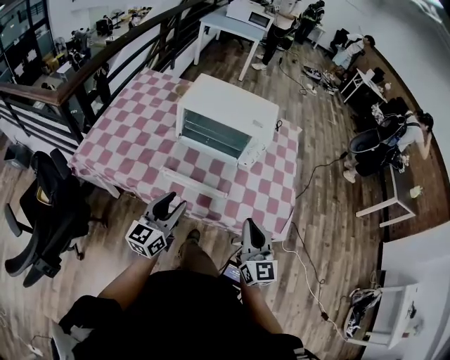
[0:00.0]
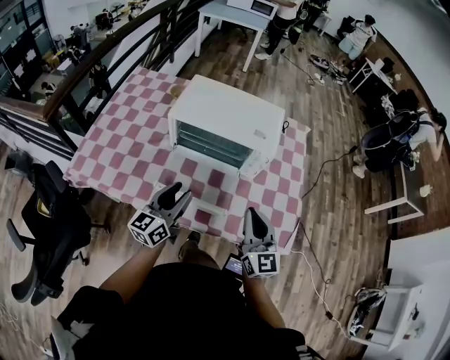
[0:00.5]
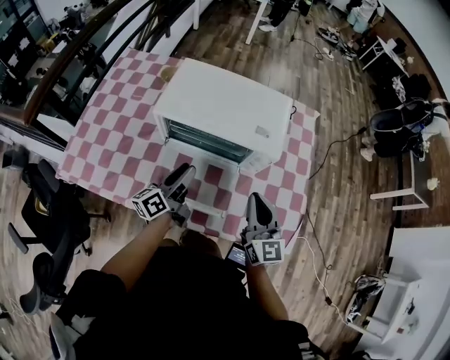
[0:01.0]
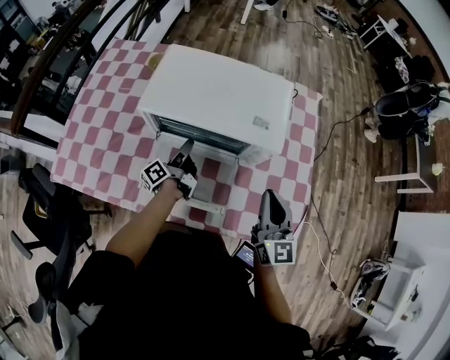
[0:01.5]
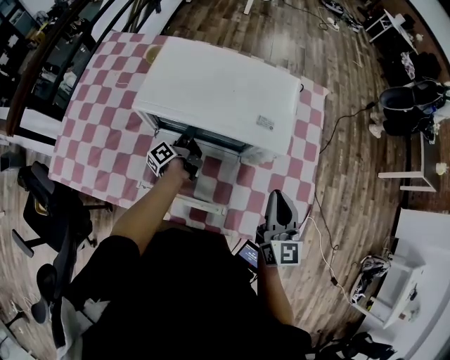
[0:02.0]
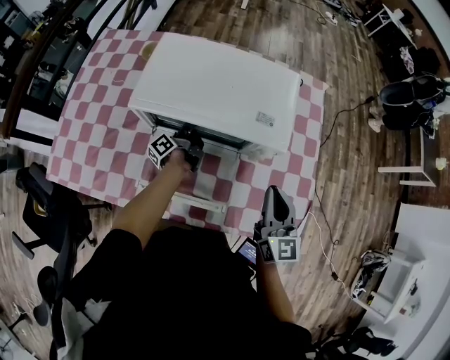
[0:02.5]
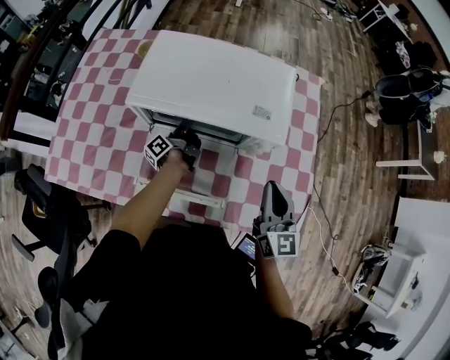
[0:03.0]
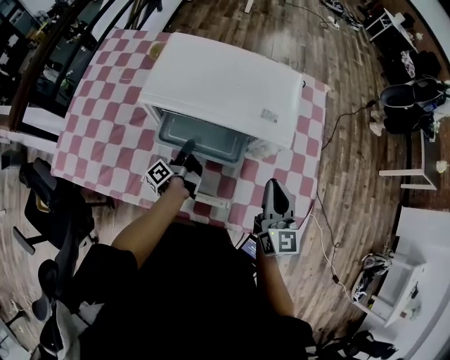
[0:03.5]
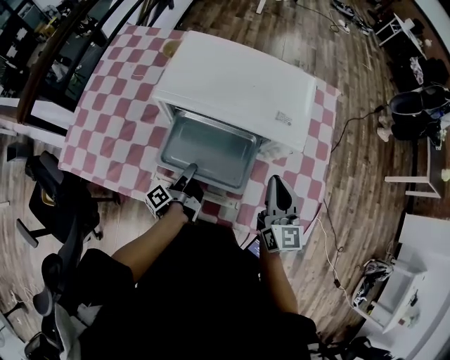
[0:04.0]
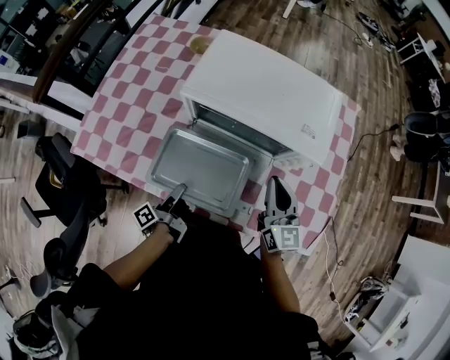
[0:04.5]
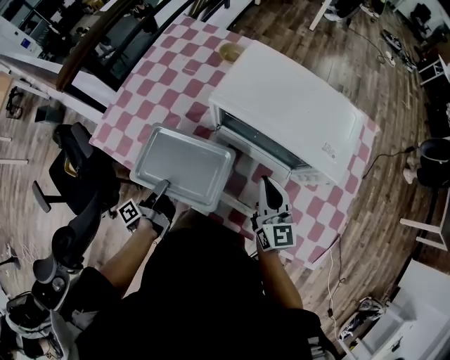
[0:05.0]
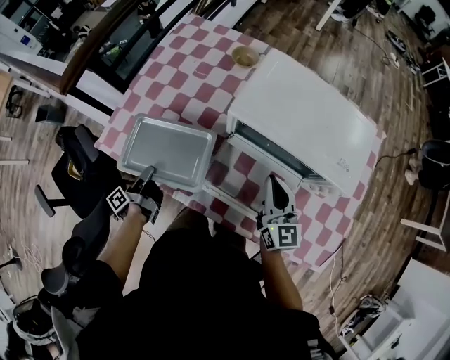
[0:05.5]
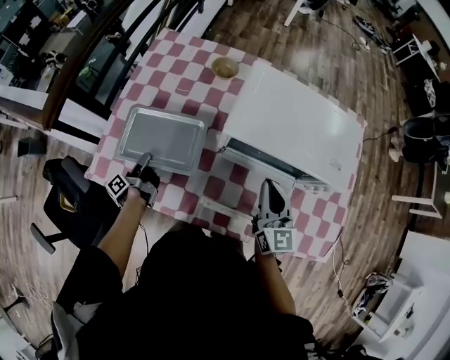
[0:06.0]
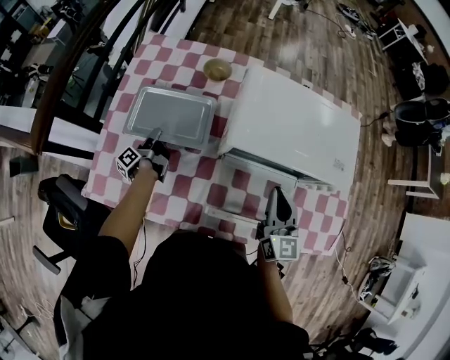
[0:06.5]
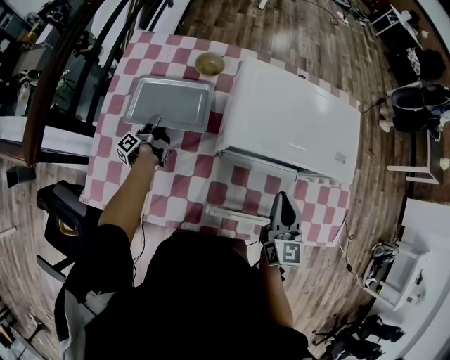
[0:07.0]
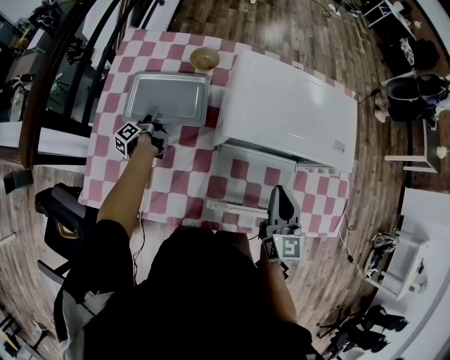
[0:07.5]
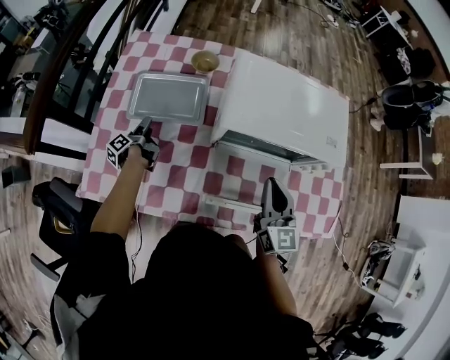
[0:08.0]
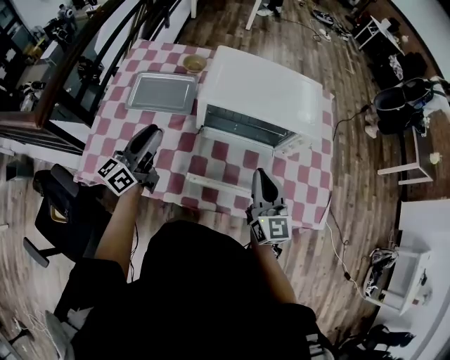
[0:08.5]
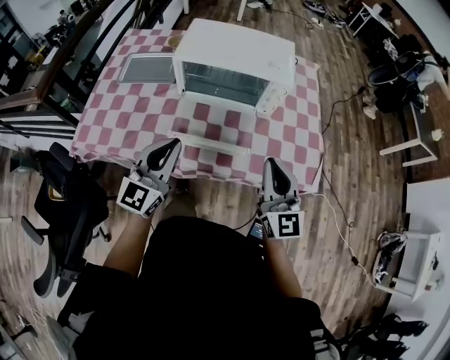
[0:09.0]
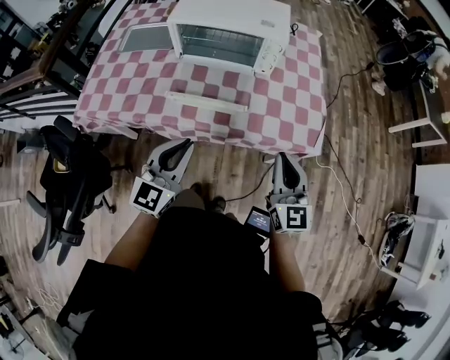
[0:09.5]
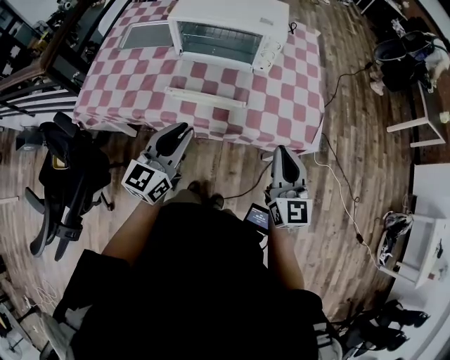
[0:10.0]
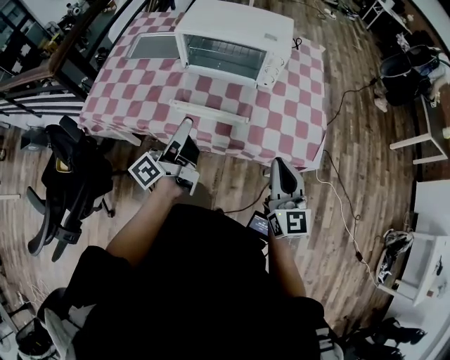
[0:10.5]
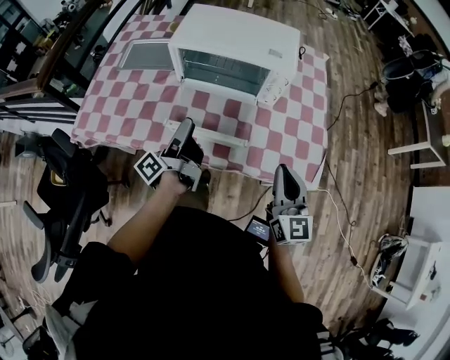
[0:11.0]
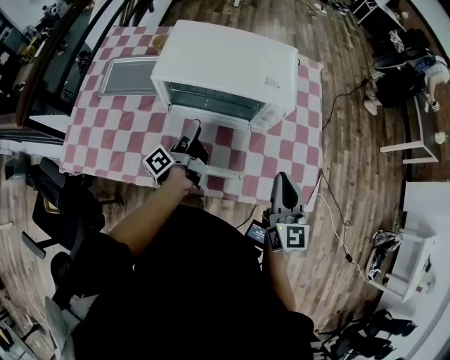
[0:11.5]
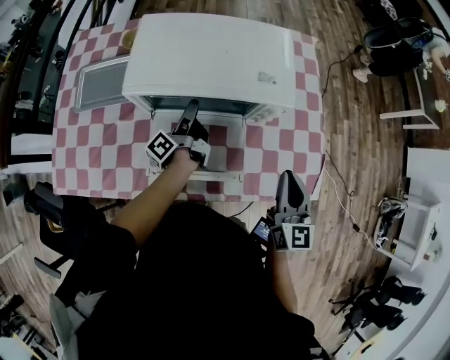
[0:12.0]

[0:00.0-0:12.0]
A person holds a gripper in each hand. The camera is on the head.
0:00.0 to 0:02.0: The right gripper travels forward by approximately 25 cm. The left gripper shifts roughly 50 cm forward and downward, and rotates around the line of its fingers by some 70 degrees, counterclockwise from behind.
0:02.0 to 0:04.0: The left gripper shifts some 15 cm backward, while the right gripper shifts by roughly 5 cm.
0:04.0 to 0:06.0: The left gripper is displaced to the left by about 35 cm; the right gripper heads to the left and forward, covering approximately 20 cm.
0:06.0 to 0:08.0: The left gripper heads forward, covering approximately 15 cm, and opens up.
0:08.0 to 0:10.0: The pair of grippers is taken backward and to the right, approximately 50 cm. The left gripper shifts about 25 cm upward, rotates around the line of its fingers by about 80 degrees, clockwise from behind, and closes up.
0:10.0 to 0:12.0: The right gripper moves forward, about 25 cm. The left gripper heads forward, covering approximately 40 cm, rotates around the line of its fingers by about 80 degrees, counterclockwise from behind, and opens up.

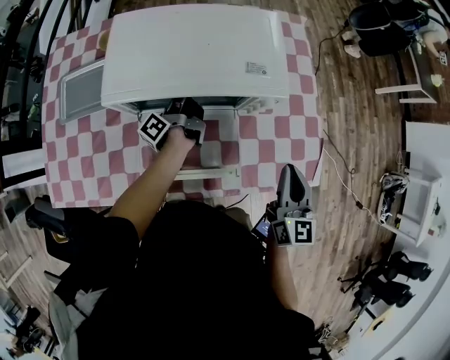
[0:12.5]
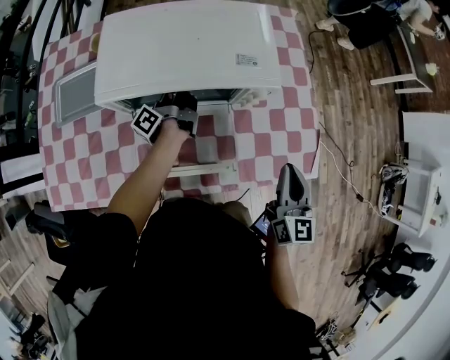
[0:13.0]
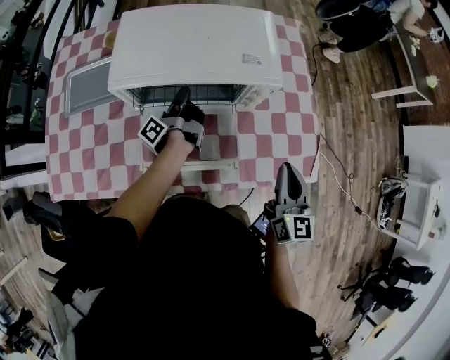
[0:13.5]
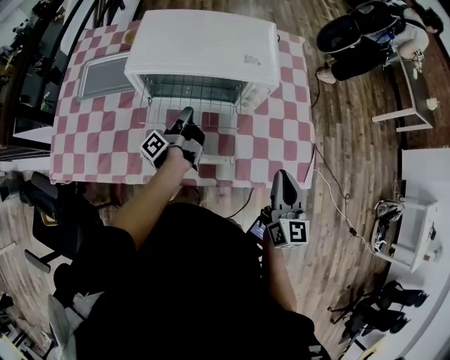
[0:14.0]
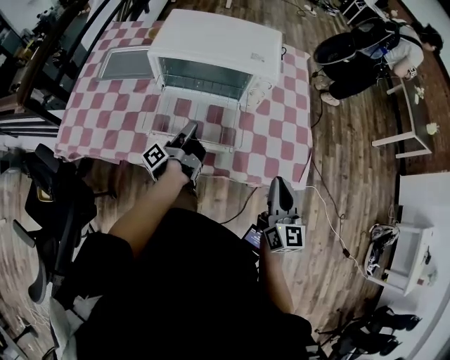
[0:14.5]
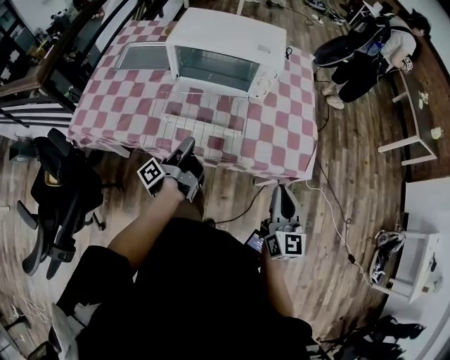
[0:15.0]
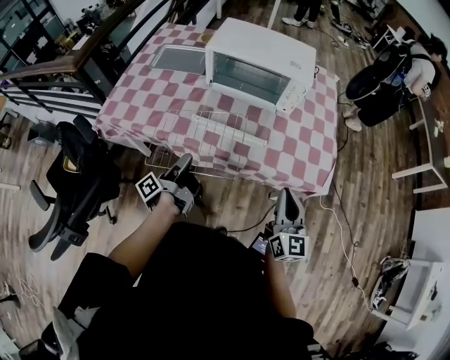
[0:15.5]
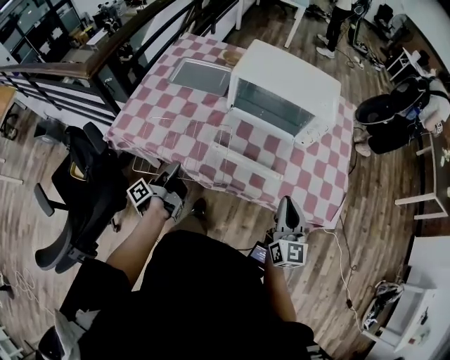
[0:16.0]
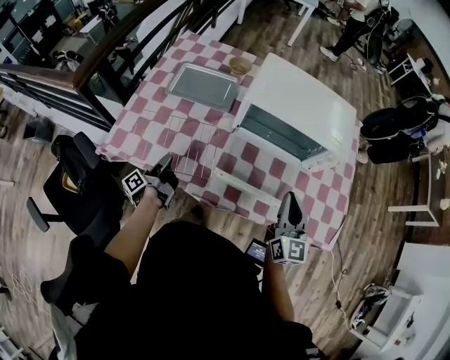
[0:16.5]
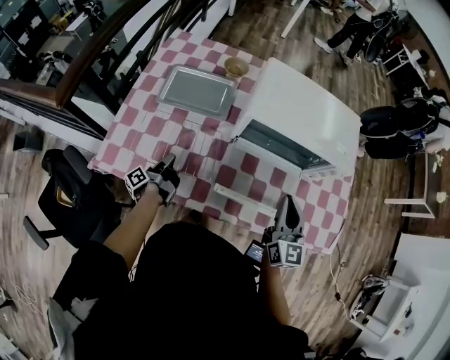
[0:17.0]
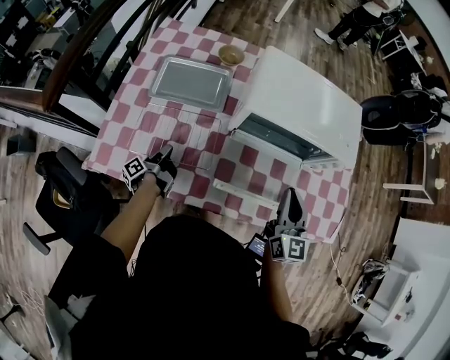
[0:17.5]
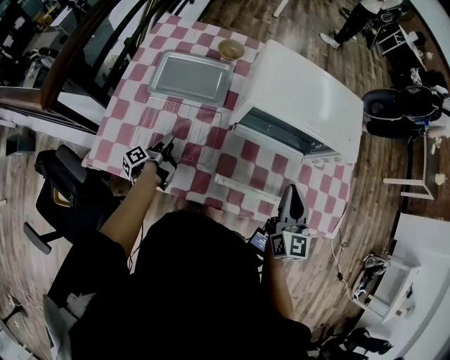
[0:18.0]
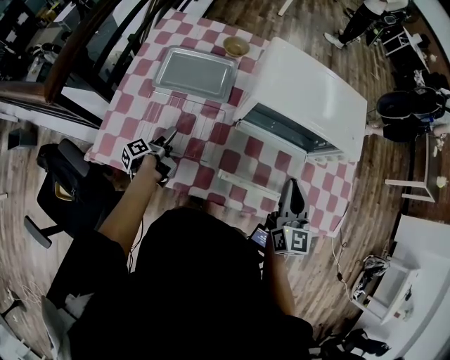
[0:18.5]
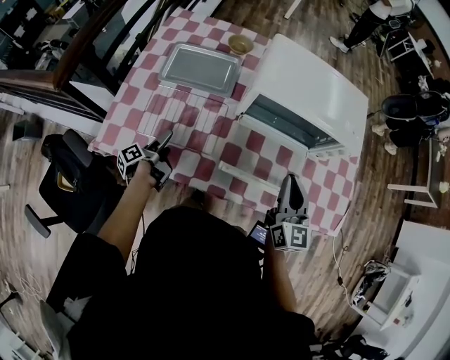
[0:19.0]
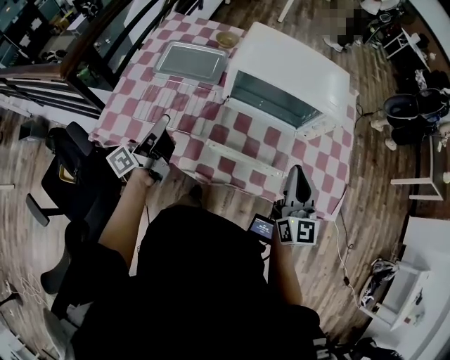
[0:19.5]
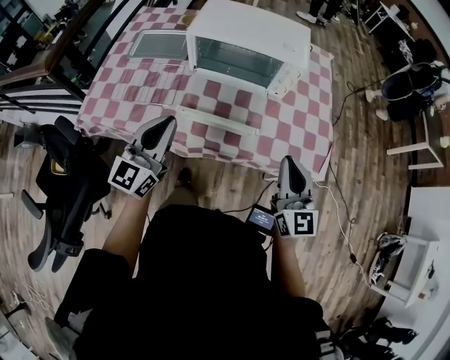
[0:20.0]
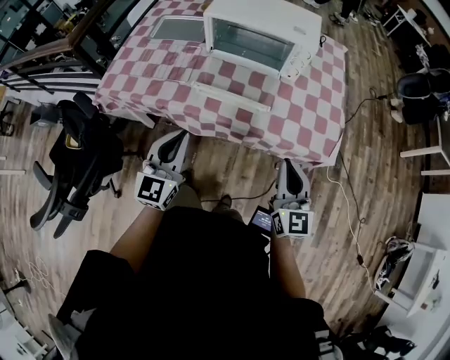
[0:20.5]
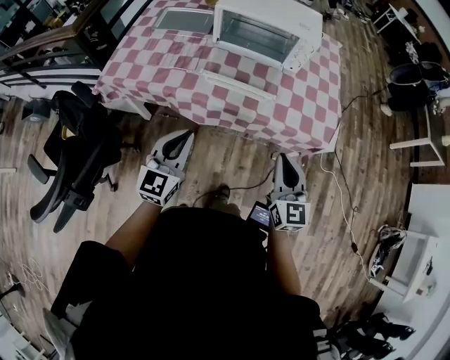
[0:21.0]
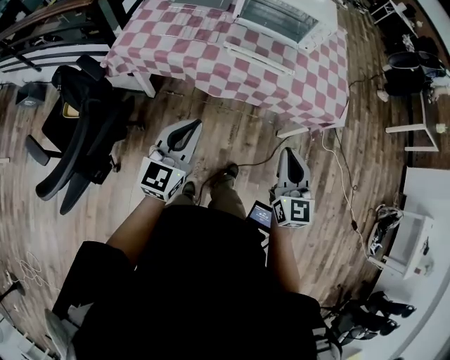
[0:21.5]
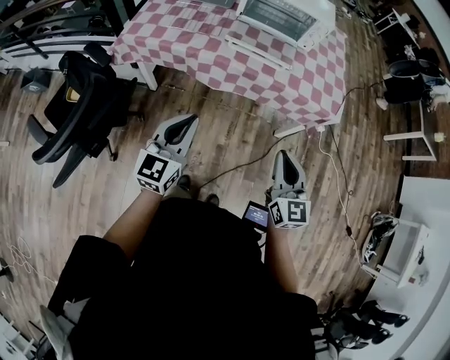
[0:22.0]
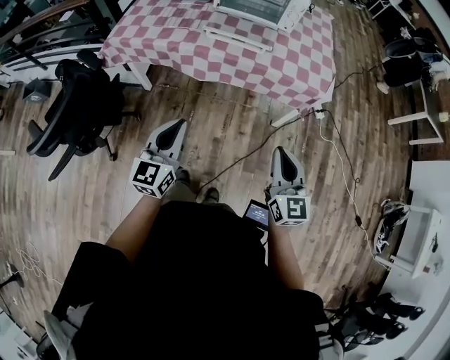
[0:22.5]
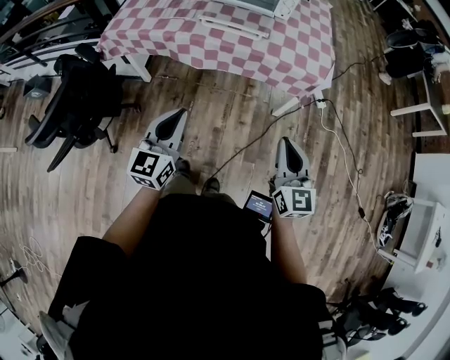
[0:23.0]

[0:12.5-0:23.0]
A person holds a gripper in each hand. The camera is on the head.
0:12.5 to 0:14.5: The left gripper shifts some 25 cm backward, and closes its fingers, while the right gripper travels backward by approximately 15 cm.
0:14.5 to 0:16.5: The right gripper heads to the left and forward, covering approximately 25 cm, while the left gripper heads to the left, covering roughly 35 cm.
0:16.5 to 0:19.0: The left gripper heads downward, covering about 5 cm, rotates approximately 20 degrees, and opens its fingers. The right gripper travels to the left by approximately 5 cm.
0:19.0 to 0:21.0: The right gripper travels backward and to the right by approximately 35 cm. The left gripper heads backward, to the right and upward, covering approximately 50 cm, rolls clockwise, seen from behind, by roughly 100 degrees, and closes its fingers.
0:21.0 to 0:23.0: Both grippers move backward, some 25 cm.

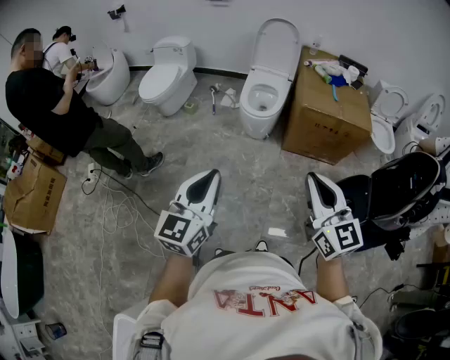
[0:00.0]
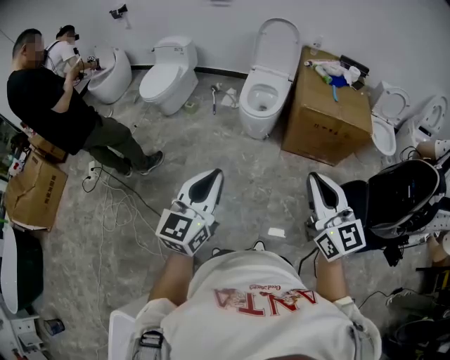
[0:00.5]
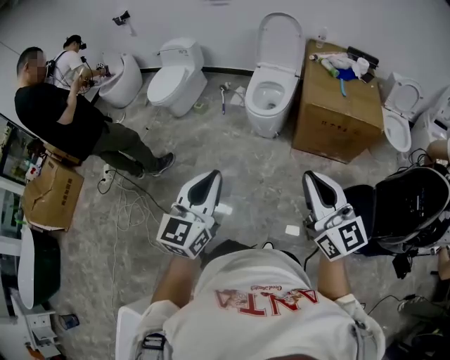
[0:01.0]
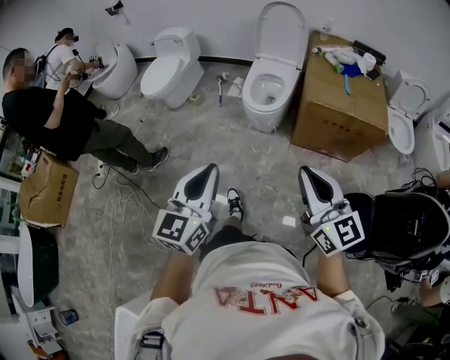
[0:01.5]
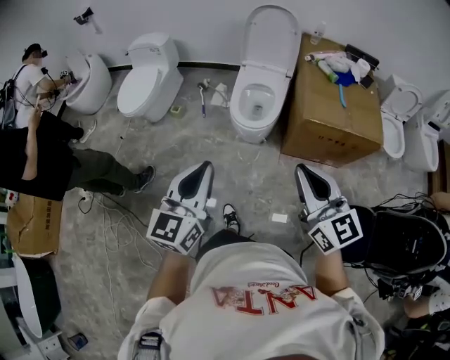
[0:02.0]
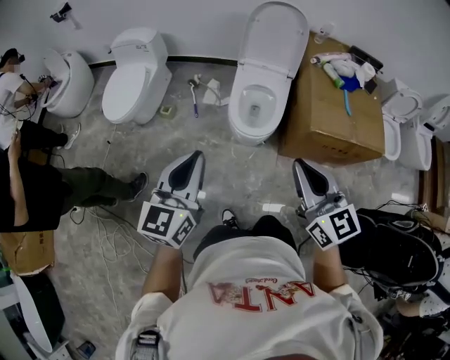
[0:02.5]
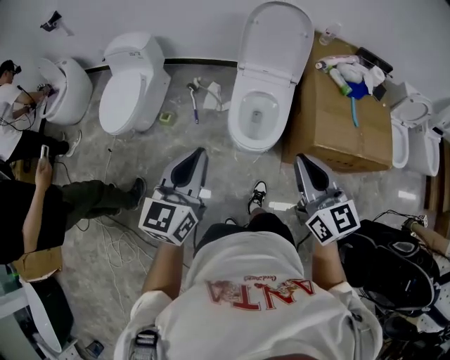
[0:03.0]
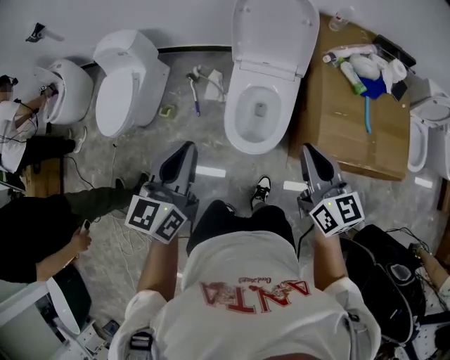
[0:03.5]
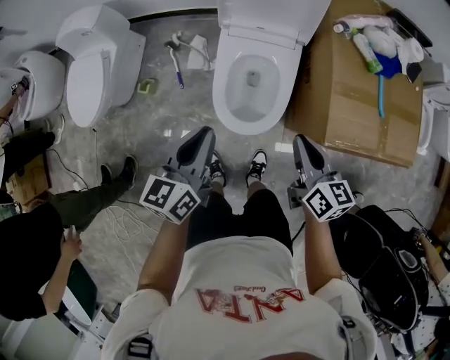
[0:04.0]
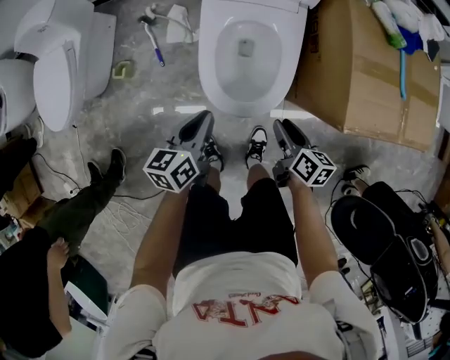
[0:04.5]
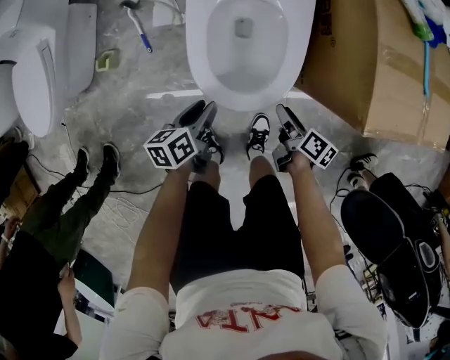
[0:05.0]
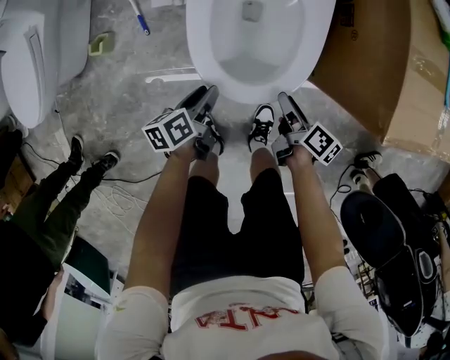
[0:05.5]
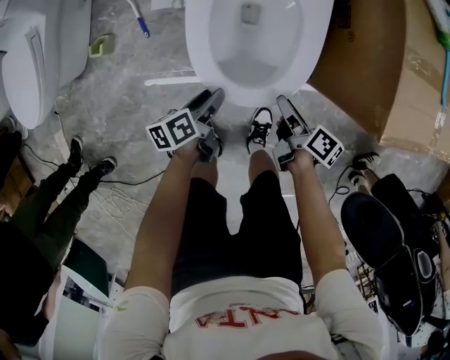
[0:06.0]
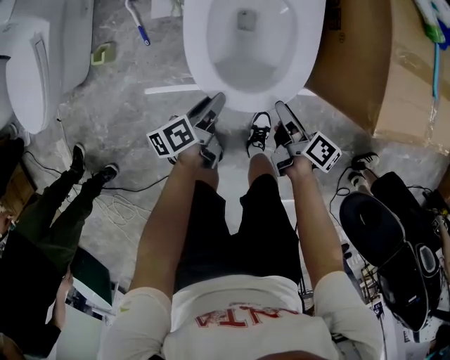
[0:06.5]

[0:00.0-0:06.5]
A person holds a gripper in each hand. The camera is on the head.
0:00.0 to 0:02.0: Both grippers move forward, approximately 25 cm.
0:02.0 to 0:04.5: The left gripper moves forward and downward, roughly 60 cm, and turns by some 40 degrees; the right gripper heads downward and forward, covering roughly 70 cm, twists approximately 50 degrees clockwise, seen from behind, and opens up.
0:04.5 to 0:06.5: The right gripper goes approximately 10 cm downward, and swivels about 20 degrees. The left gripper goes roughly 20 cm downward, turns by roughly 30 degrees, and opens.
